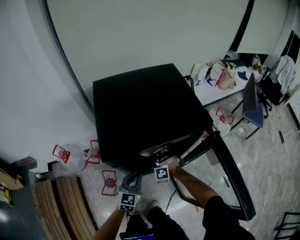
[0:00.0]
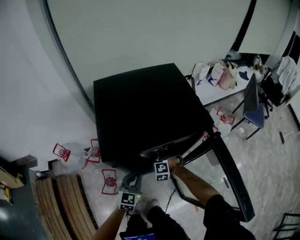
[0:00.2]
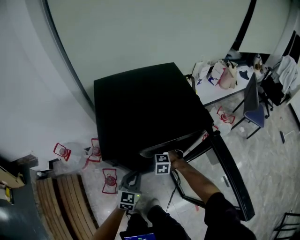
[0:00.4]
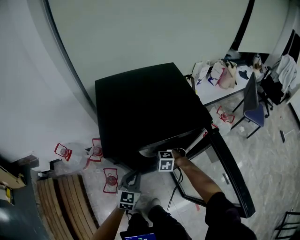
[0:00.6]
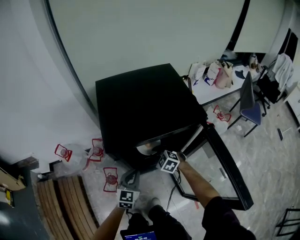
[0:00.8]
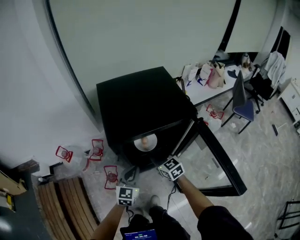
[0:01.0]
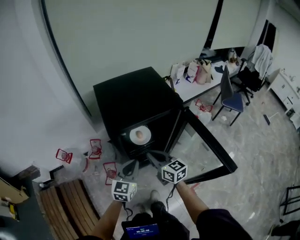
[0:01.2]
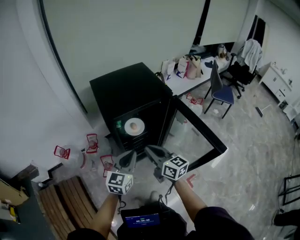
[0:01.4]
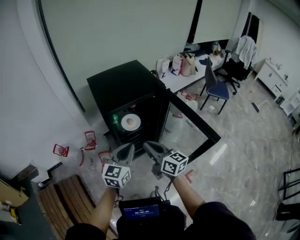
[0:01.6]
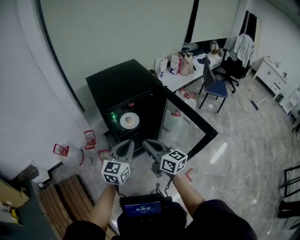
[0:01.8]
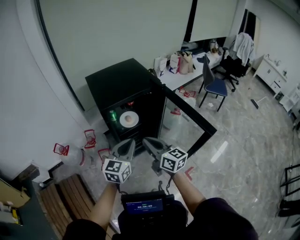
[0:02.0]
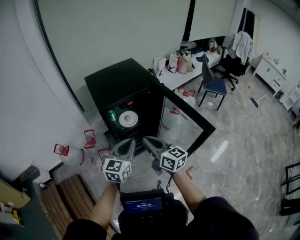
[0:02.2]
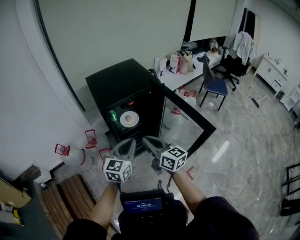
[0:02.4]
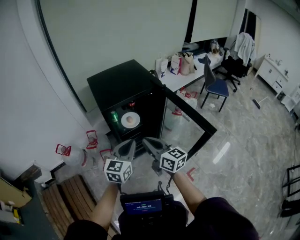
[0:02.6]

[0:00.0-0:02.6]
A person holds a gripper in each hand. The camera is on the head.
0:00.0 to 0:01.2: The right gripper travels upward and backward by about 30 cm, and twists about 90 degrees clockwise, seen from behind; the left gripper goes about 20 cm upward and backward.
0:01.2 to 0:02.6: Both grippers travel together backward and upward, some 15 cm.

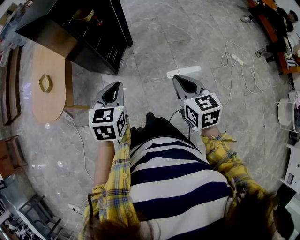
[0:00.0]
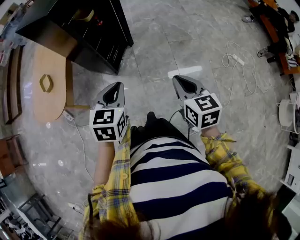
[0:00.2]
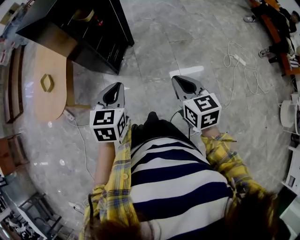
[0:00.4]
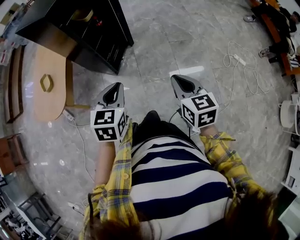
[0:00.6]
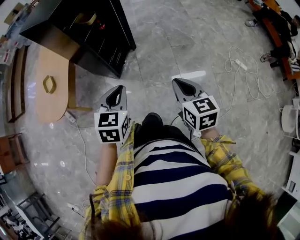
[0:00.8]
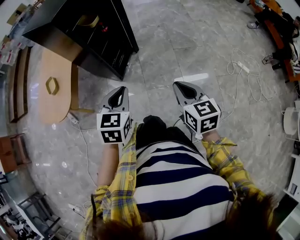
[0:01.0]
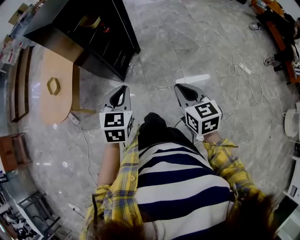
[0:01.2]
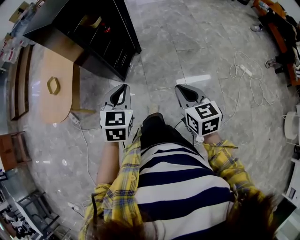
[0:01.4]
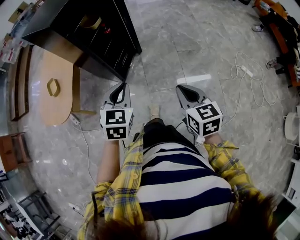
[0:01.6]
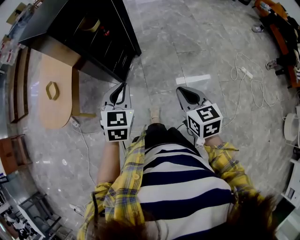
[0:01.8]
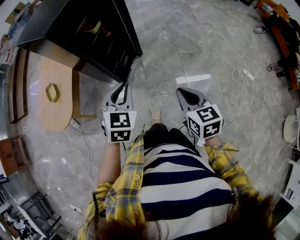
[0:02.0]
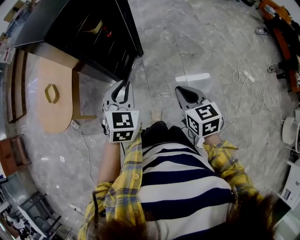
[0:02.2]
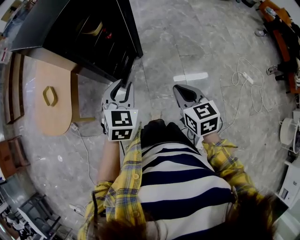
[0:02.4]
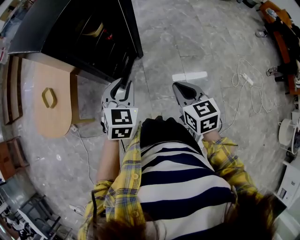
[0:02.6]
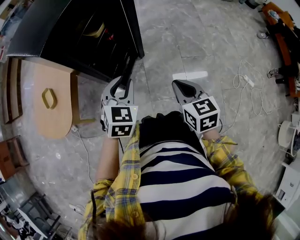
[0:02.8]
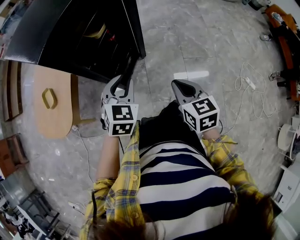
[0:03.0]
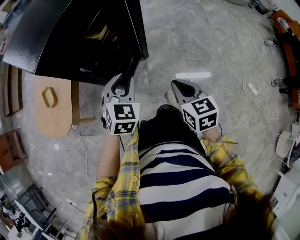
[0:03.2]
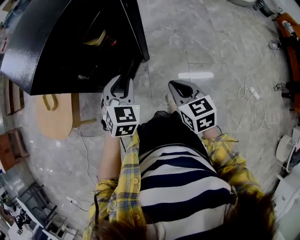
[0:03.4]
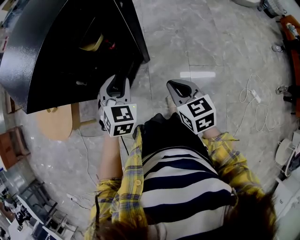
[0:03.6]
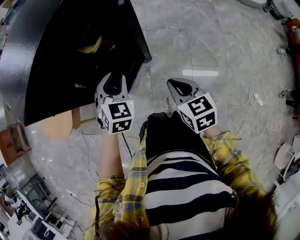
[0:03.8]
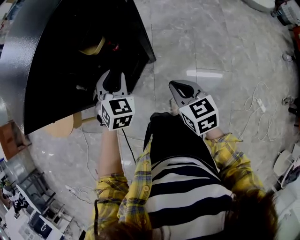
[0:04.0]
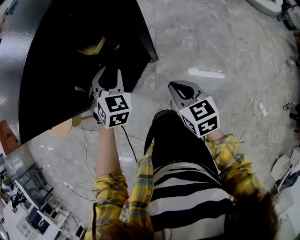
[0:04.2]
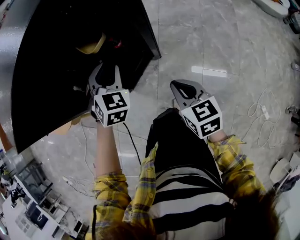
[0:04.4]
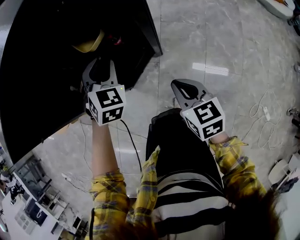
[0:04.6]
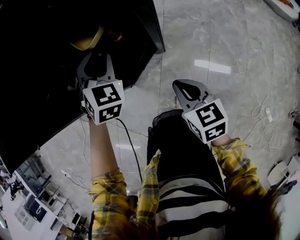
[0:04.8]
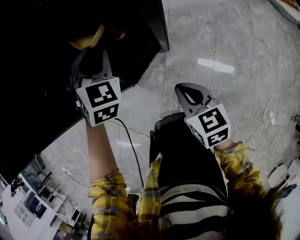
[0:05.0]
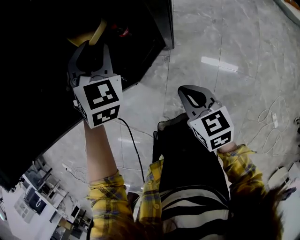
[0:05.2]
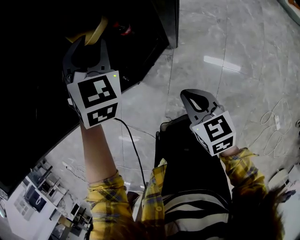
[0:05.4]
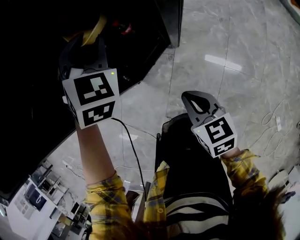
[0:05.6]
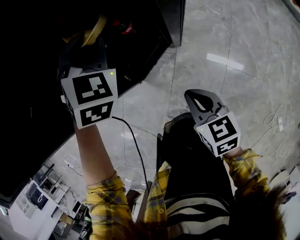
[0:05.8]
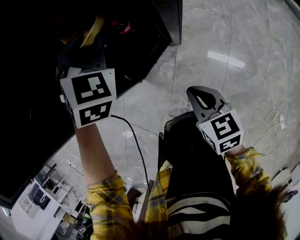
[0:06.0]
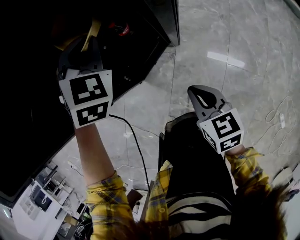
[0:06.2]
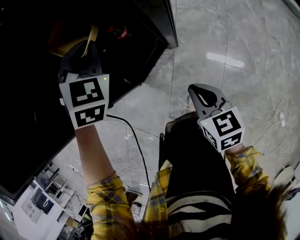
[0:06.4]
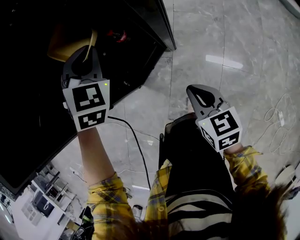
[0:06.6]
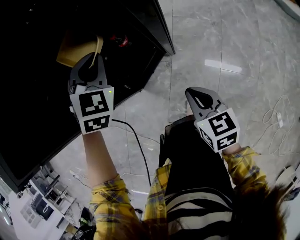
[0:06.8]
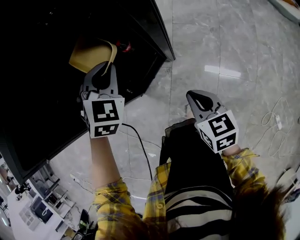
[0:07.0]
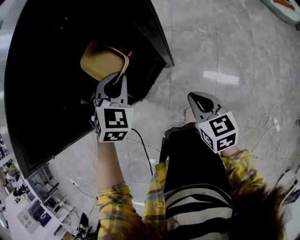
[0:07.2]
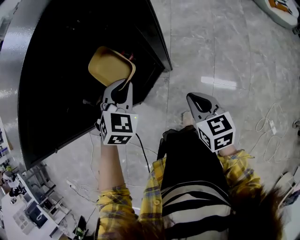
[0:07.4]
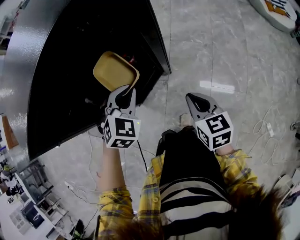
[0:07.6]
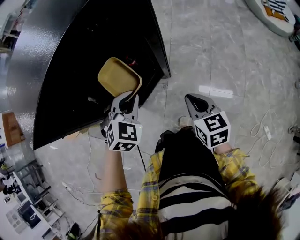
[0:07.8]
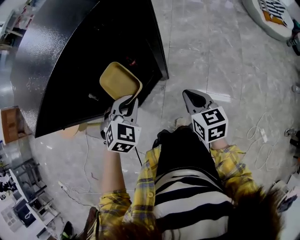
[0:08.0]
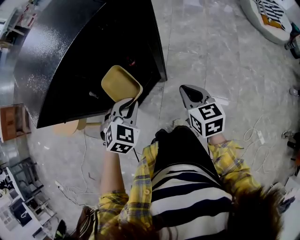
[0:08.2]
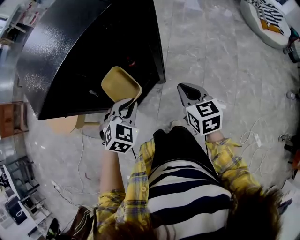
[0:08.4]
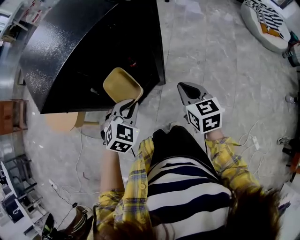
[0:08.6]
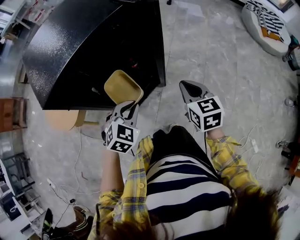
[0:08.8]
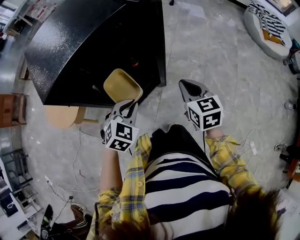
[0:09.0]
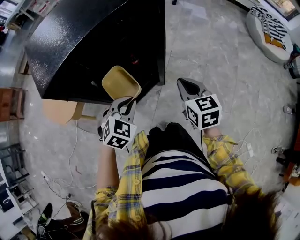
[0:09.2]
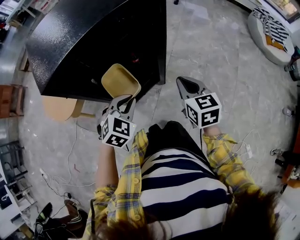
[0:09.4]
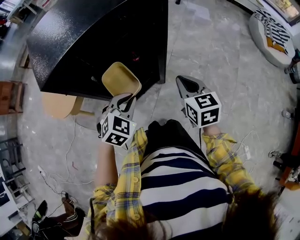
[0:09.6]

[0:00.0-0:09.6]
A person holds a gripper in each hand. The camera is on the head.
0:00.0 to 0:01.6: The left gripper travels forward by approximately 5 cm.
0:01.6 to 0:03.2: The grippers both shift forward by roughly 20 cm.
0:03.2 to 0:04.8: The right gripper shifts by roughly 20 cm, and turns by about 20 degrees. Meanwhile the left gripper changes place by approximately 20 cm, and rotates some 30 degrees.
0:04.8 to 0:06.4: The left gripper moves forward, approximately 5 cm, and closes up. Meanwhile the right gripper heads downward, covering about 5 cm.
0:06.4 to 0:08.0: The right gripper goes about 10 cm upward; the left gripper goes roughly 15 cm backward.
0:08.0 to 0:09.6: The right gripper heads upward, covering roughly 5 cm.

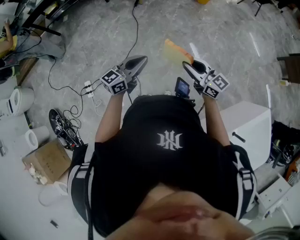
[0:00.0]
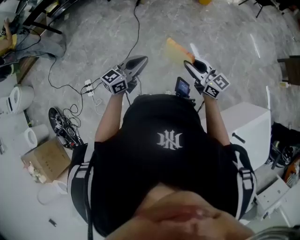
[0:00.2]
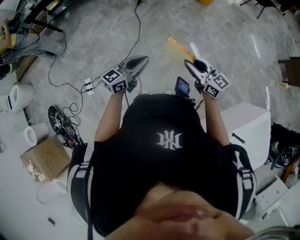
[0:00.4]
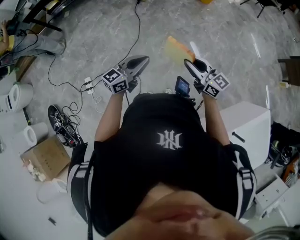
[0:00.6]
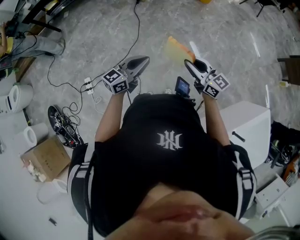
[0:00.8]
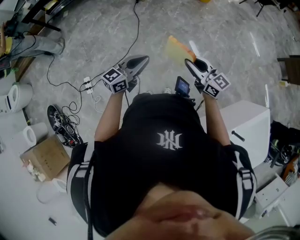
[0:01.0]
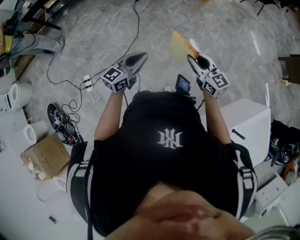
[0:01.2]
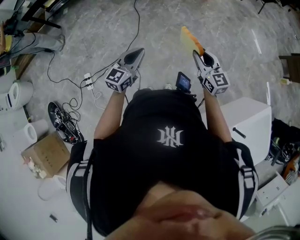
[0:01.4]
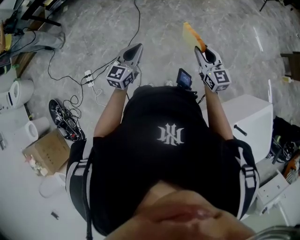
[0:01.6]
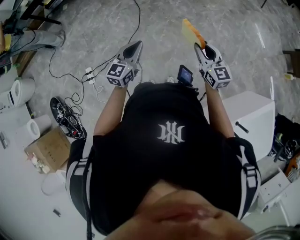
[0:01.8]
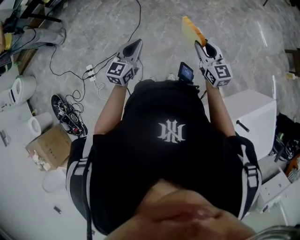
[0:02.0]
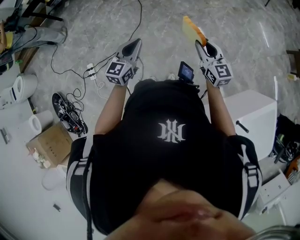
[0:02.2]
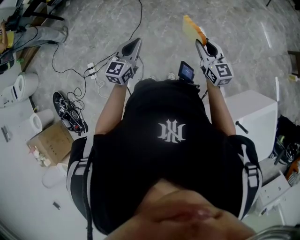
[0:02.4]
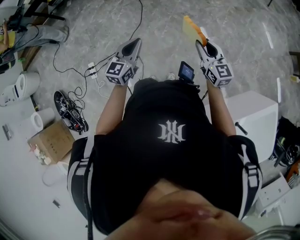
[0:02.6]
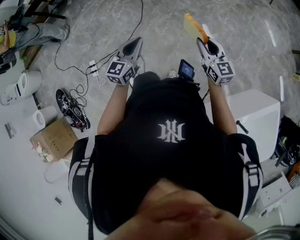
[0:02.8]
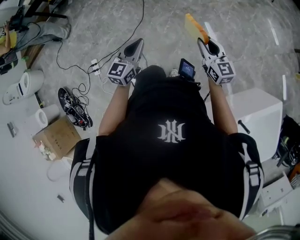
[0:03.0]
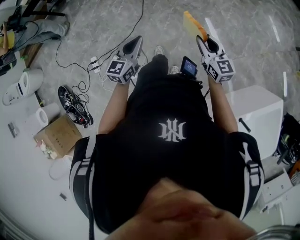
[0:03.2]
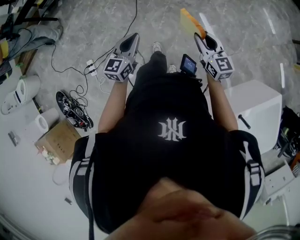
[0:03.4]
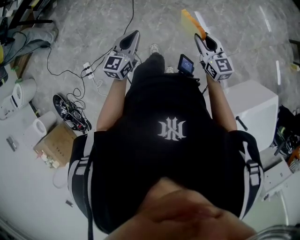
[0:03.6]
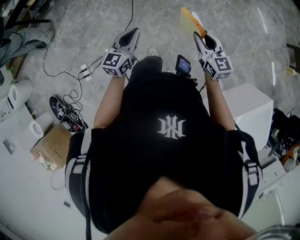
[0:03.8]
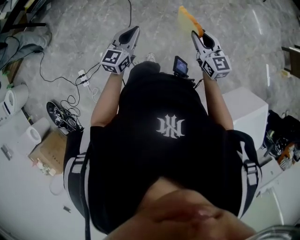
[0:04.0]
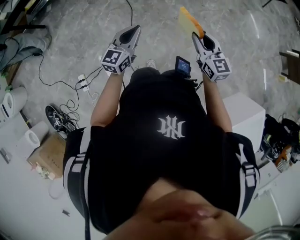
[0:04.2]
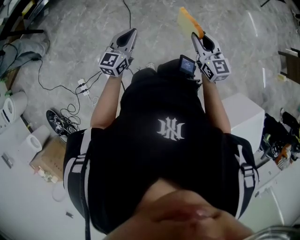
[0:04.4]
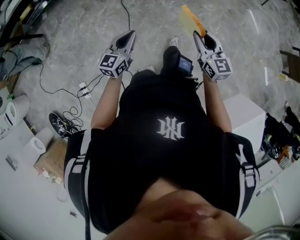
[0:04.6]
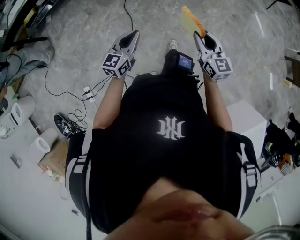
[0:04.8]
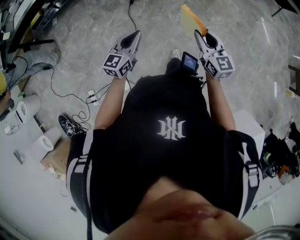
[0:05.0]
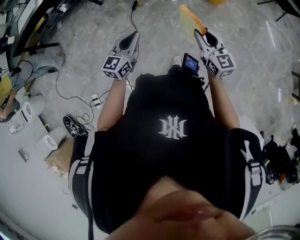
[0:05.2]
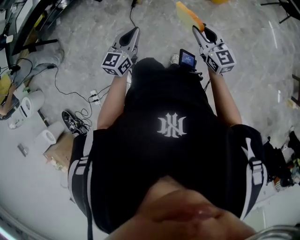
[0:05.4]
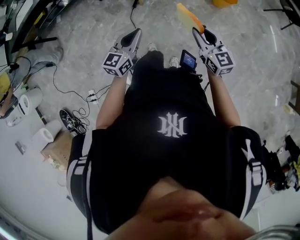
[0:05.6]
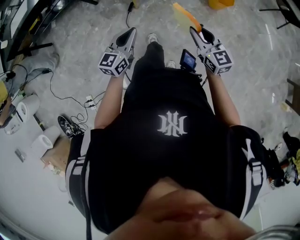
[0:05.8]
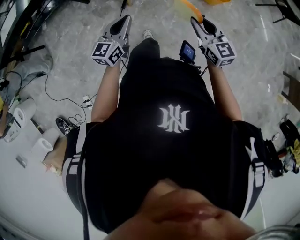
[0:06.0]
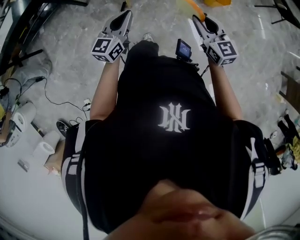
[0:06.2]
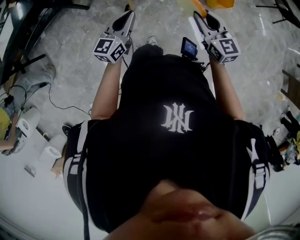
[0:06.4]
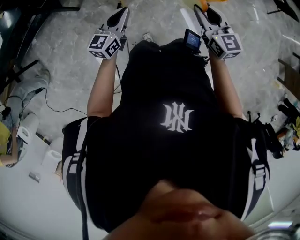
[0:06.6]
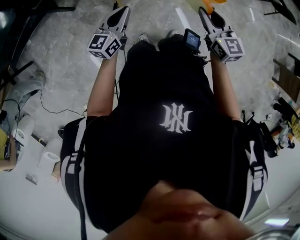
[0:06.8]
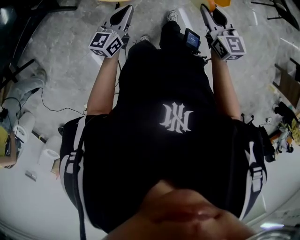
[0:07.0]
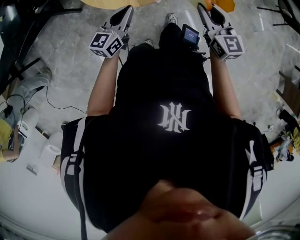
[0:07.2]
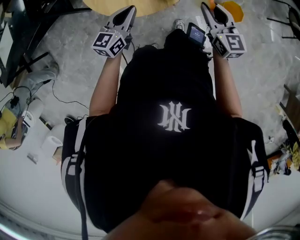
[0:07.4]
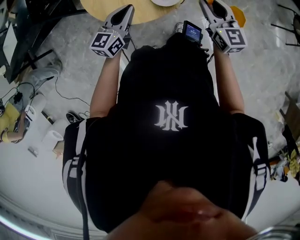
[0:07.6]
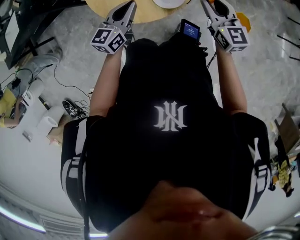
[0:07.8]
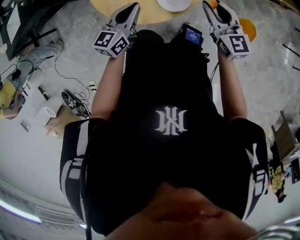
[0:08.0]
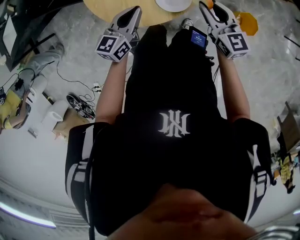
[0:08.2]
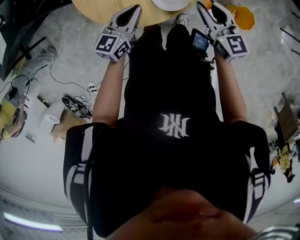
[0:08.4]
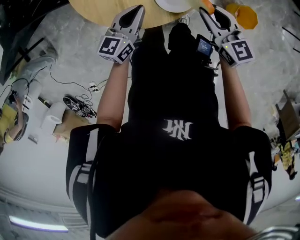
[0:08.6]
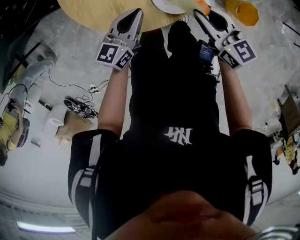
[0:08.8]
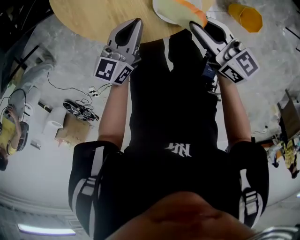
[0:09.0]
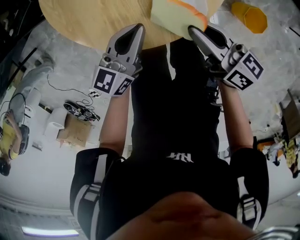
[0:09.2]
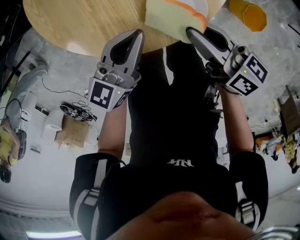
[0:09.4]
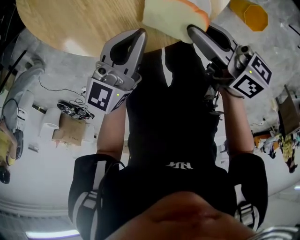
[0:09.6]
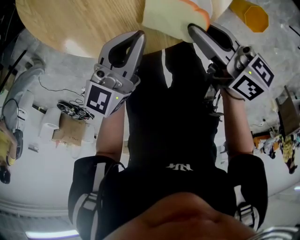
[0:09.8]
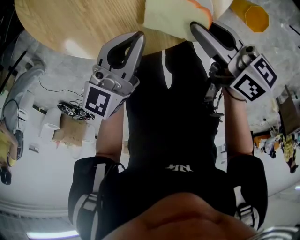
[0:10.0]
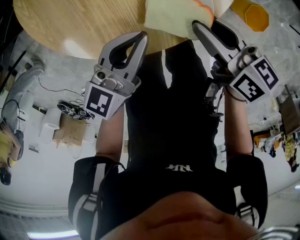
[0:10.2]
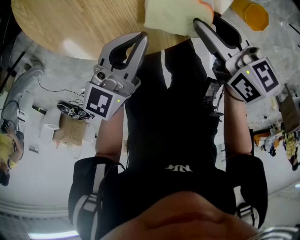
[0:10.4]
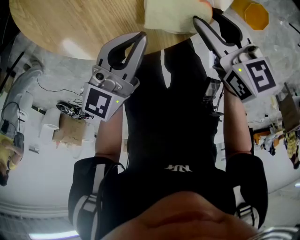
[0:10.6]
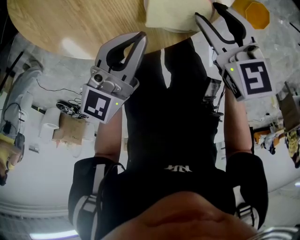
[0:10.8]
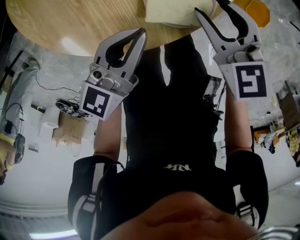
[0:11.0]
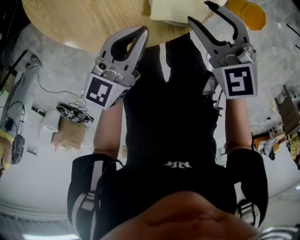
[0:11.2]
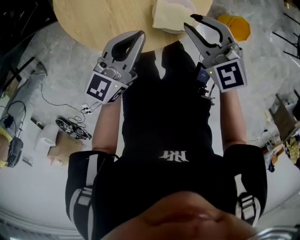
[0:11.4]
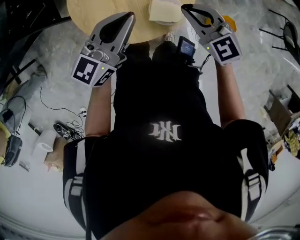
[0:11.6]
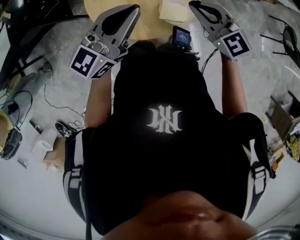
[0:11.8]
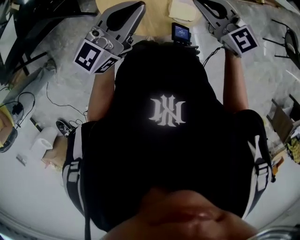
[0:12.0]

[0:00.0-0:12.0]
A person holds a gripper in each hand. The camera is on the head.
0:00.0 to 0:01.6: The left gripper rotates some 20 degrees. The right gripper ends up some 5 cm from where it was, and swivels approximately 30 degrees.
0:01.6 to 0:03.0: The left gripper ends up about 5 cm from where it was. The right gripper ends up about 5 cm from where it was.
0:03.0 to 0:04.4: Both grippers move forward, some 25 cm.
0:04.4 to 0:06.0: The pair of grippers is taken forward, some 40 cm.
0:06.0 to 0:07.6: Both grippers move forward, about 35 cm.
0:07.6 to 0:09.0: The right gripper is displaced downward and to the left by some 10 cm, and swivels about 40 degrees. The left gripper travels downward by approximately 10 cm.
0:09.0 to 0:10.4: The right gripper heads downward, covering approximately 5 cm.
0:10.4 to 0:12.0: The two grippers go some 30 cm upward. The right gripper twists roughly 60 degrees counterclockwise, seen from behind, and closes. Meanwhile the left gripper turns by approximately 30 degrees.
